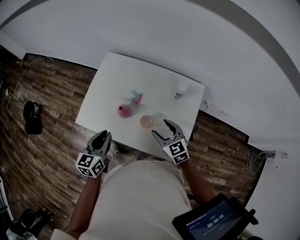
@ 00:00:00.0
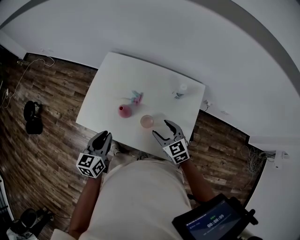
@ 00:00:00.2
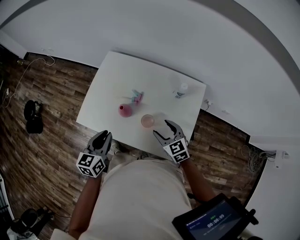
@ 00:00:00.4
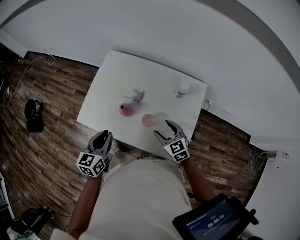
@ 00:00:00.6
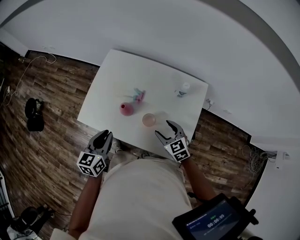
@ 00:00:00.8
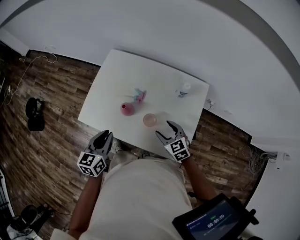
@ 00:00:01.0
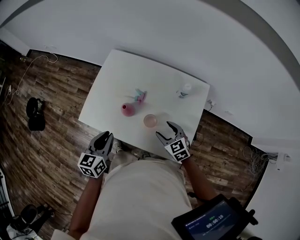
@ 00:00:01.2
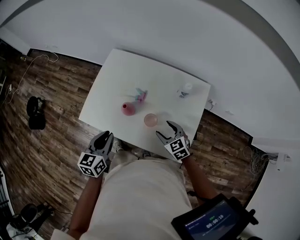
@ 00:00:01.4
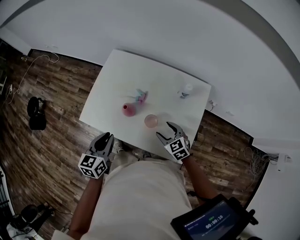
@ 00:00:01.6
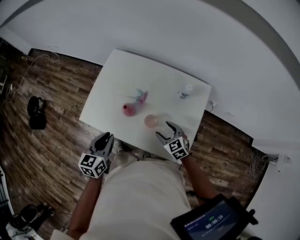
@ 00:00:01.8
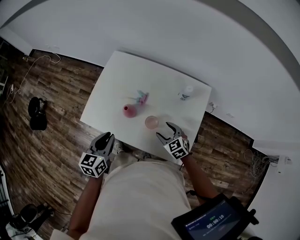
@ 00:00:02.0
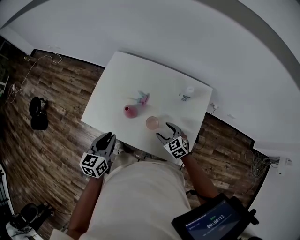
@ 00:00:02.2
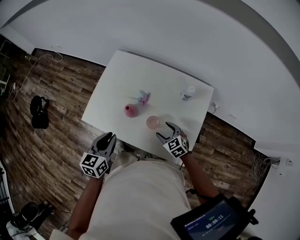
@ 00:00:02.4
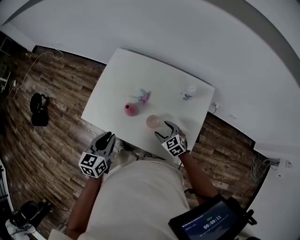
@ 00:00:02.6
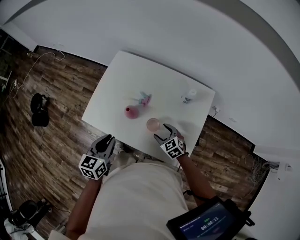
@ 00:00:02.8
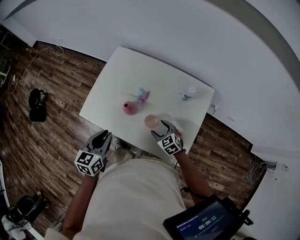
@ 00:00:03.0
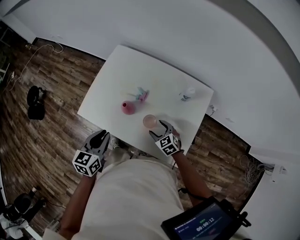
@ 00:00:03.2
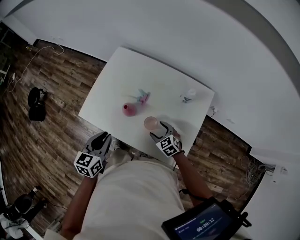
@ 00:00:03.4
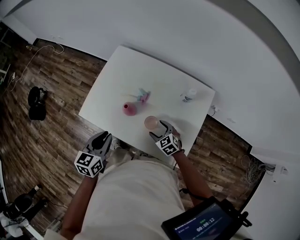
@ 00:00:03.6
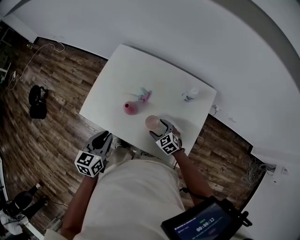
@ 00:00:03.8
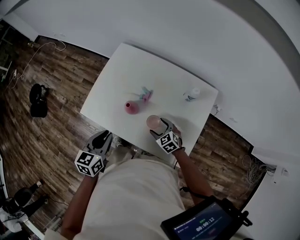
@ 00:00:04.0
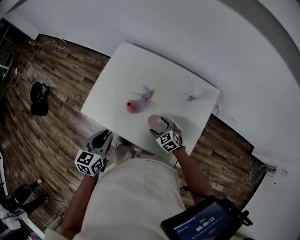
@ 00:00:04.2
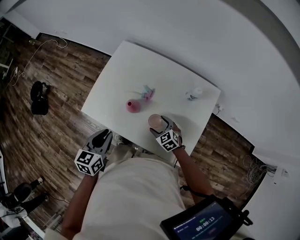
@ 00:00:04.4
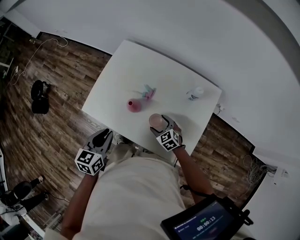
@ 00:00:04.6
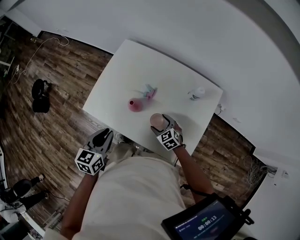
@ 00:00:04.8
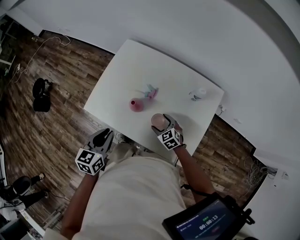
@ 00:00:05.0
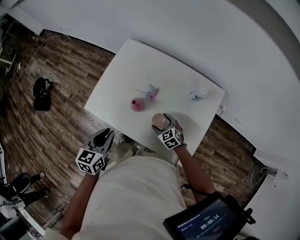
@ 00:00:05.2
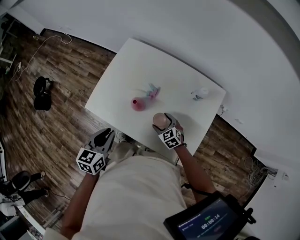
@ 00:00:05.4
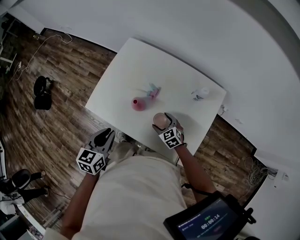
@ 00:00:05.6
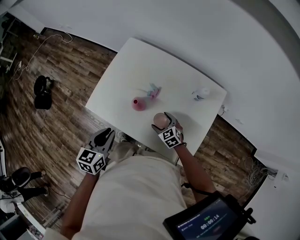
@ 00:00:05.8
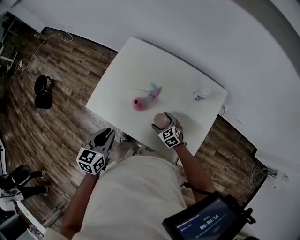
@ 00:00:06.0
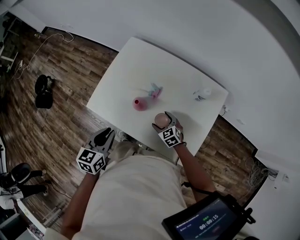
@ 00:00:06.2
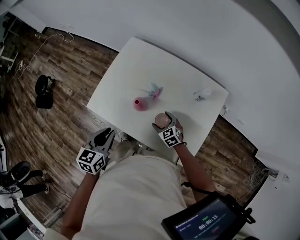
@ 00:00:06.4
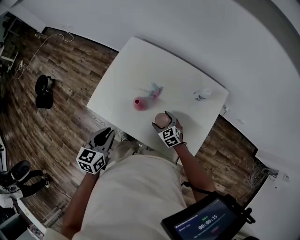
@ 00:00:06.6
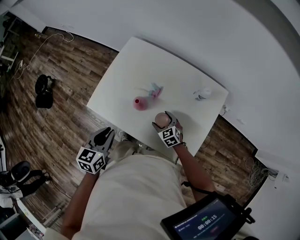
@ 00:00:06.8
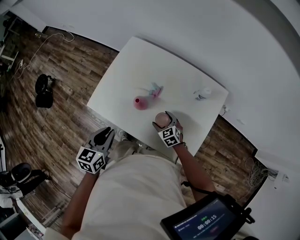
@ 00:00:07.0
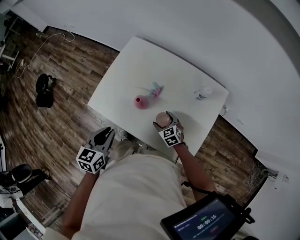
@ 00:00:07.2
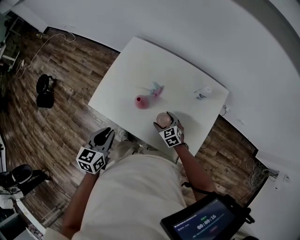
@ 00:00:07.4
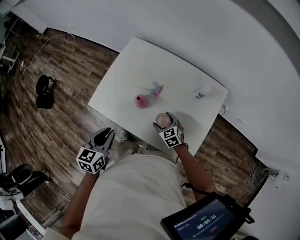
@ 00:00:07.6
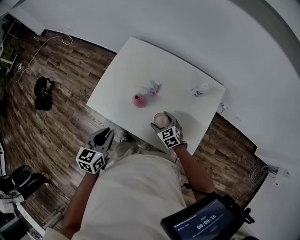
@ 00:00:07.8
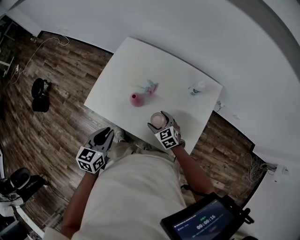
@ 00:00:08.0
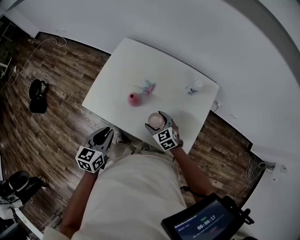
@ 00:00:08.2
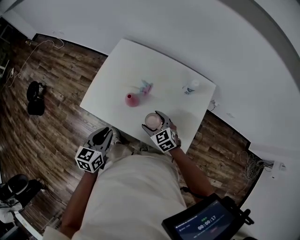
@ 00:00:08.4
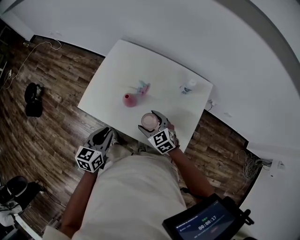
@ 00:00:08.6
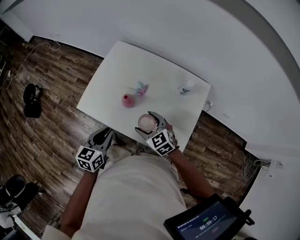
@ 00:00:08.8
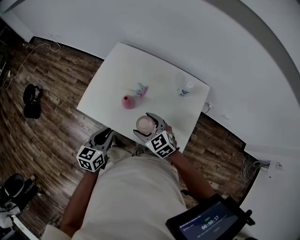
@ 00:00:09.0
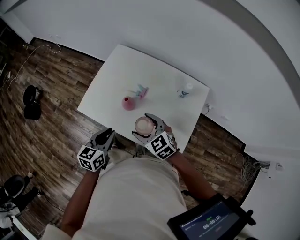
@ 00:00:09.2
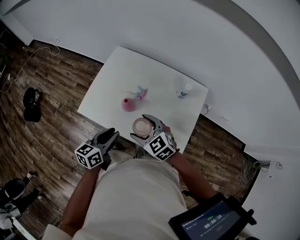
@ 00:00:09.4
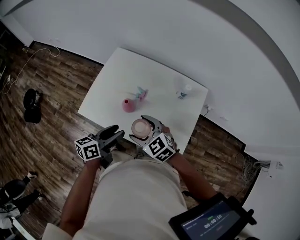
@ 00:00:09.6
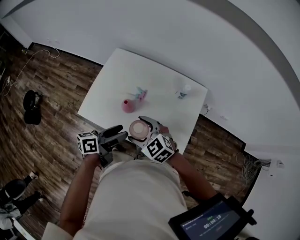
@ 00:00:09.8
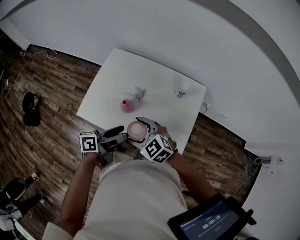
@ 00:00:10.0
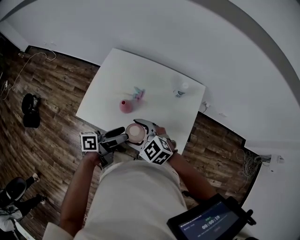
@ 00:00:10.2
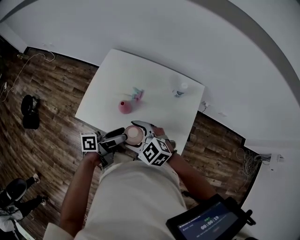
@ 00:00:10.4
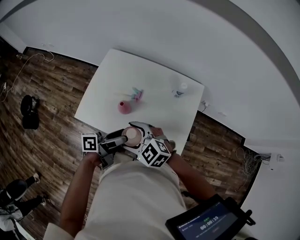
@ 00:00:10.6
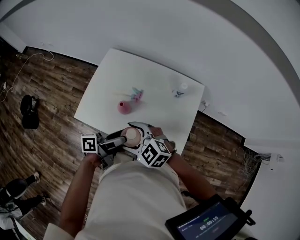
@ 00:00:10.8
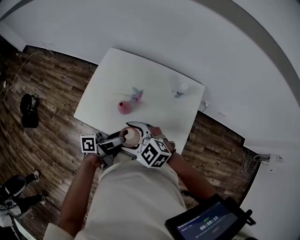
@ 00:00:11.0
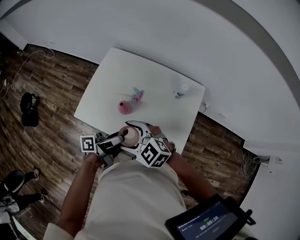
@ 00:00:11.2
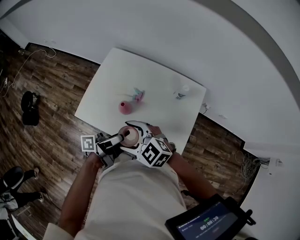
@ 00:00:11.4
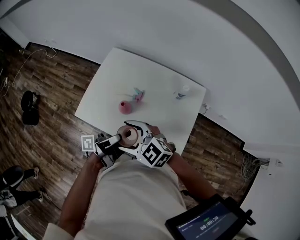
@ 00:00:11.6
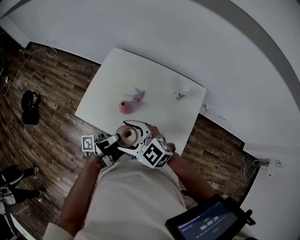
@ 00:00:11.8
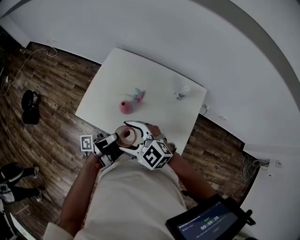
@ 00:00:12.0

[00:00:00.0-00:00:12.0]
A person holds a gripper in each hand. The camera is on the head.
00:00:00.0 to 00:00:01.6: The right gripper goes about 10 cm downward.
00:00:01.6 to 00:00:03.0: The right gripper is displaced downward by some 5 cm.
00:00:03.0 to 00:00:04.4: The grippers stay close to where they were, moving slightly.
00:00:04.4 to 00:00:07.6: The grippers make only small movements.
00:00:07.6 to 00:00:09.0: The right gripper heads upward, covering some 20 cm.
00:00:09.0 to 00:00:10.4: The left gripper moves to the right, roughly 10 cm, changes its angle by about 60 degrees, and opens up. Meanwhile the right gripper heads upward, covering about 5 cm.
00:00:10.4 to 00:00:12.0: The right gripper moves roughly 5 cm; the left gripper rotates roughly 30 degrees.

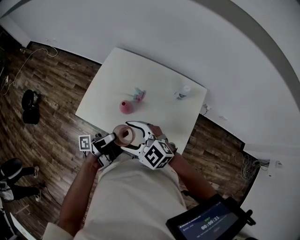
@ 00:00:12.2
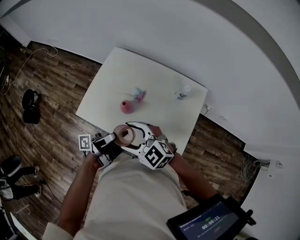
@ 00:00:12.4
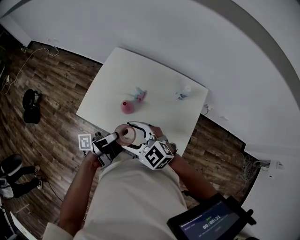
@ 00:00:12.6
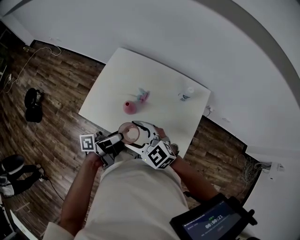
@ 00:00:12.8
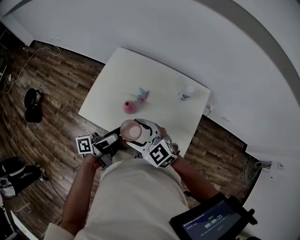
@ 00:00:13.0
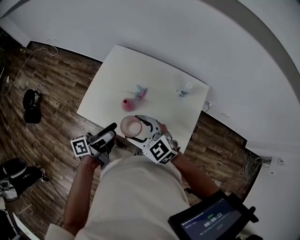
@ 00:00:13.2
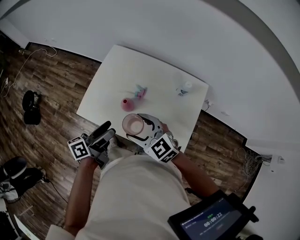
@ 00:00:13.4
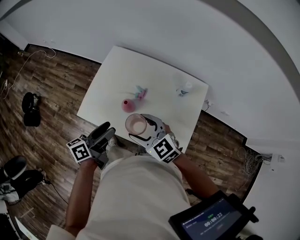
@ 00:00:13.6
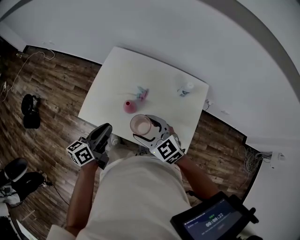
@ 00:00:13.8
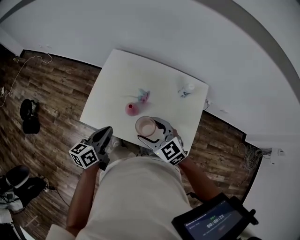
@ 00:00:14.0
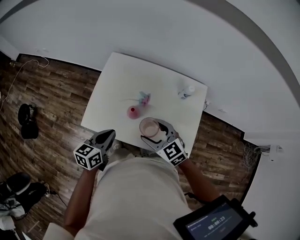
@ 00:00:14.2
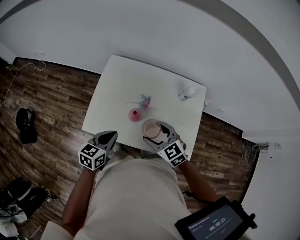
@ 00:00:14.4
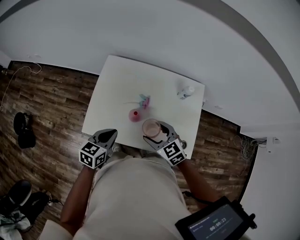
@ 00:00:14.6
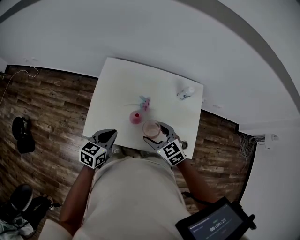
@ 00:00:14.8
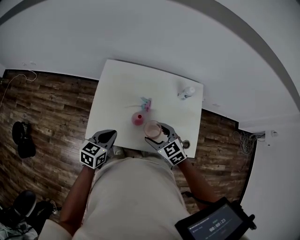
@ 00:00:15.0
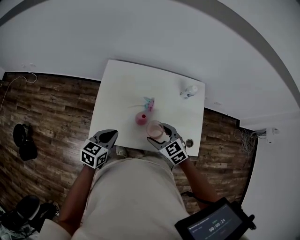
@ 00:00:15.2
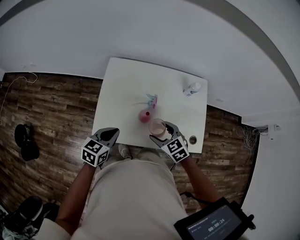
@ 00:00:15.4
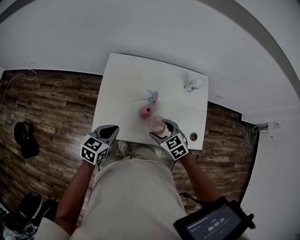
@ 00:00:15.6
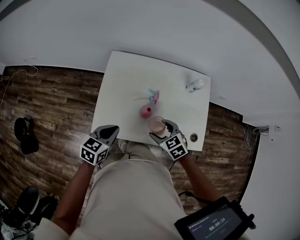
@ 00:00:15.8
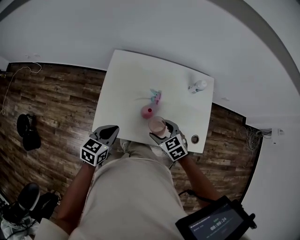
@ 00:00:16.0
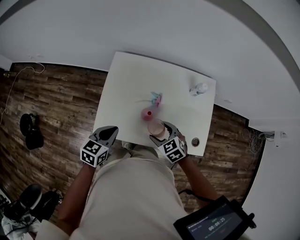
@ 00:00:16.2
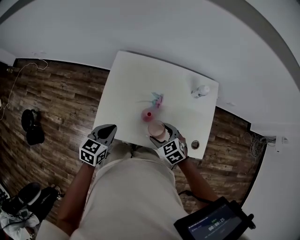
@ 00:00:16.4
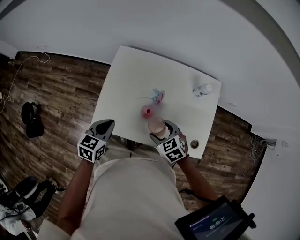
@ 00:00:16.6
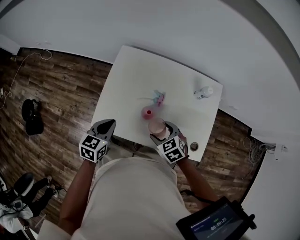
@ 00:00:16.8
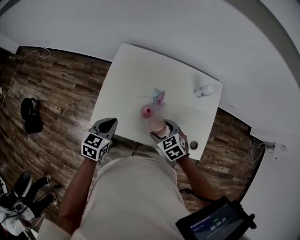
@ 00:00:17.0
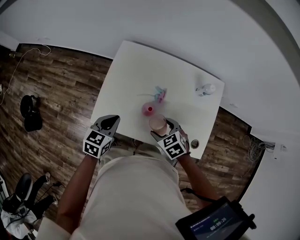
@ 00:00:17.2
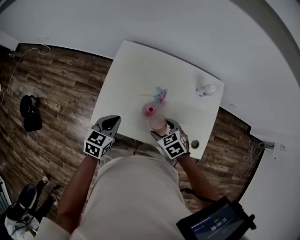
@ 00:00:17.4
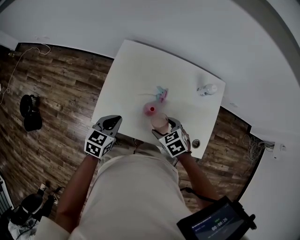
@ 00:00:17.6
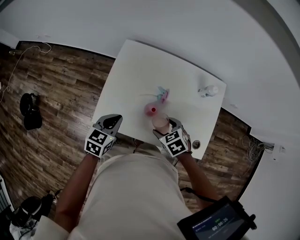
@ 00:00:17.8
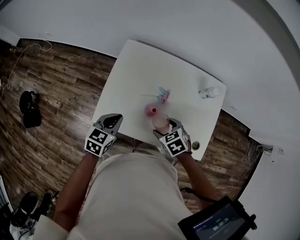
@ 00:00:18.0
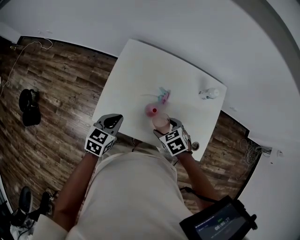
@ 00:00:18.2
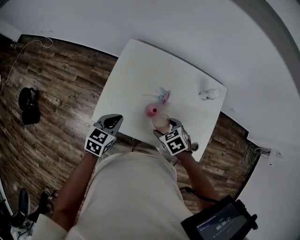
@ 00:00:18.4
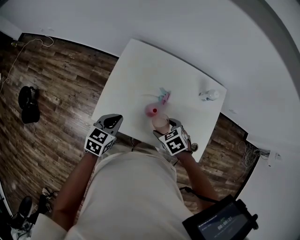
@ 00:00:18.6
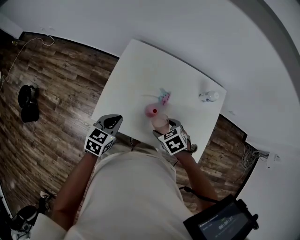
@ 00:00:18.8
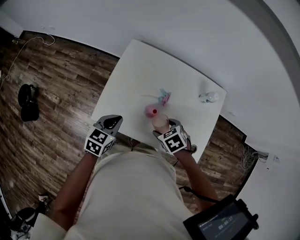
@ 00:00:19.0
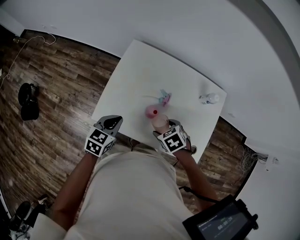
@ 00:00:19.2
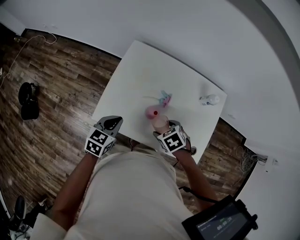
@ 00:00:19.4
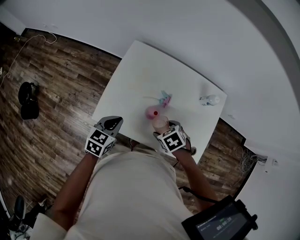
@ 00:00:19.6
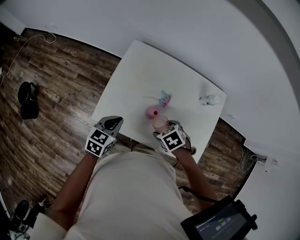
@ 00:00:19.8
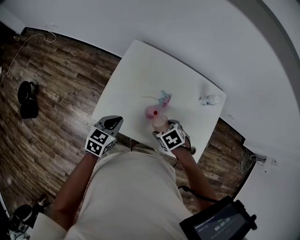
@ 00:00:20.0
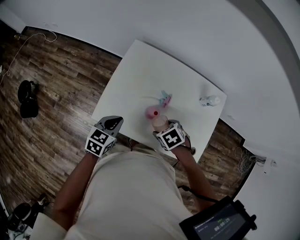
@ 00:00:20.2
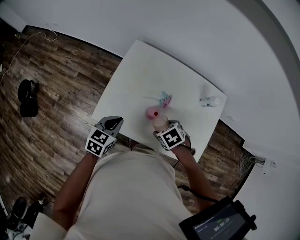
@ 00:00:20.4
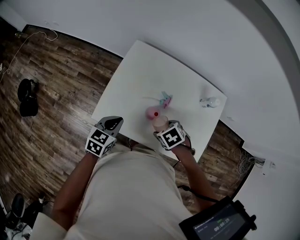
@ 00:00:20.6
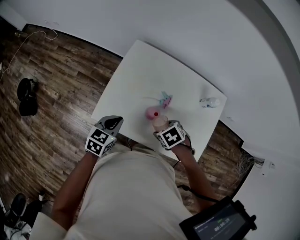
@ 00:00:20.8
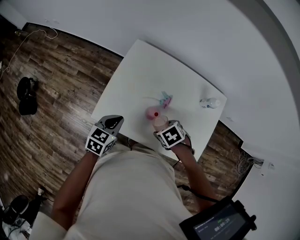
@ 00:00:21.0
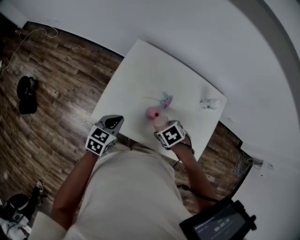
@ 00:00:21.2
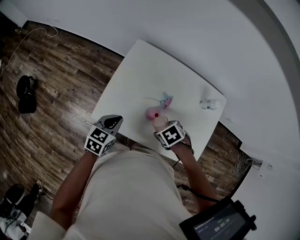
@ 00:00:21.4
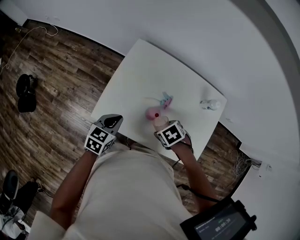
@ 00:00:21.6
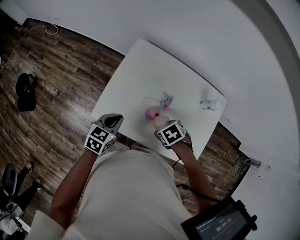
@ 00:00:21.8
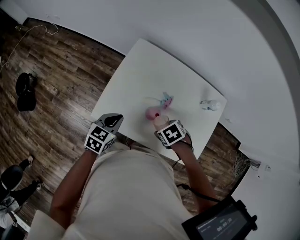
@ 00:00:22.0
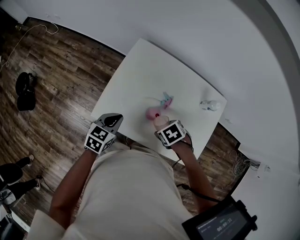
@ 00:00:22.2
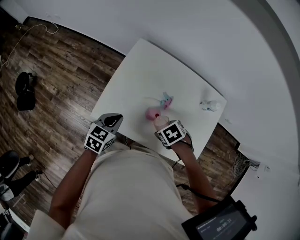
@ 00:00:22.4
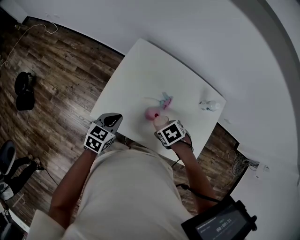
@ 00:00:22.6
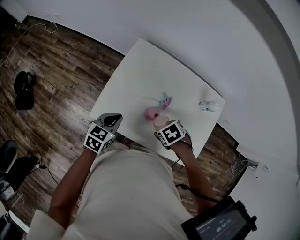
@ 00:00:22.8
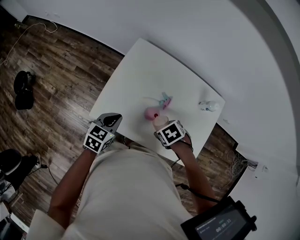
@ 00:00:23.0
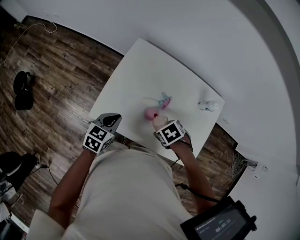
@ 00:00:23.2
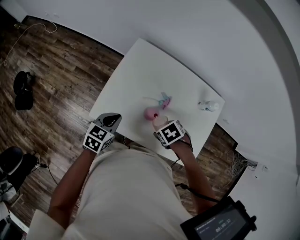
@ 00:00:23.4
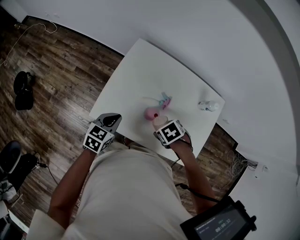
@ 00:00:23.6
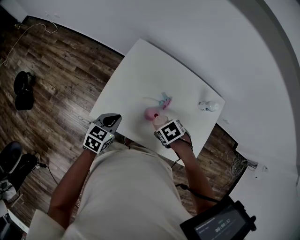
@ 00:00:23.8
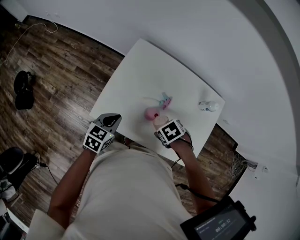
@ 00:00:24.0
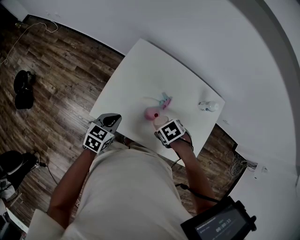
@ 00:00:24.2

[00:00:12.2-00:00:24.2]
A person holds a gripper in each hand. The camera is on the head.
00:00:12.2 to 00:00:13.8: The left gripper moves to the left, roughly 10 cm, points its fingers approximately 30 degrees further downward, and closes its fingers; the right gripper shifts some 5 cm to the right.
00:00:13.8 to 00:00:15.2: The right gripper heads downward and to the left, covering roughly 10 cm, and changes its angle by approximately 30 degrees; the left gripper goes roughly 15 cm to the left, downward and forward, and swivels approximately 40 degrees.
00:00:15.2 to 00:00:16.6: The right gripper is displaced downward by approximately 5 cm.
00:00:16.6 to 00:00:18.2: The grippers make only small movements.
00:00:18.2 to 00:00:21.2: The grippers stay close to where they were, moving slightly.
00:00:21.2 to 00:00:22.6: The two grippers keep their place.
00:00:22.6 to 00:00:24.2: Neither gripper changes place.
